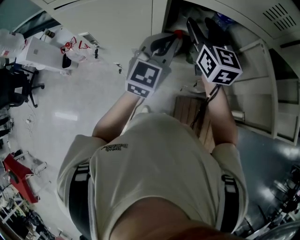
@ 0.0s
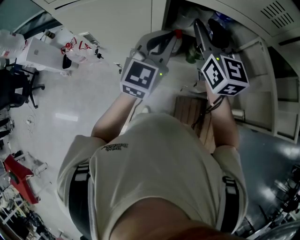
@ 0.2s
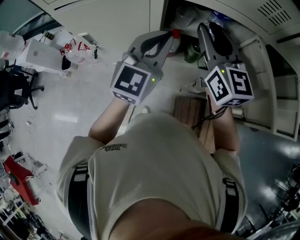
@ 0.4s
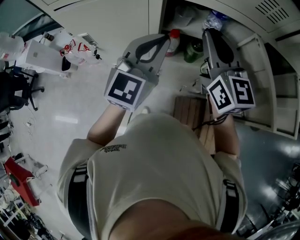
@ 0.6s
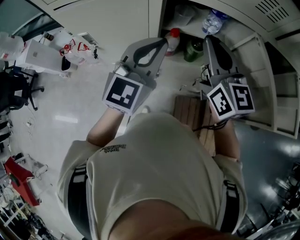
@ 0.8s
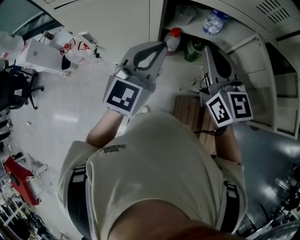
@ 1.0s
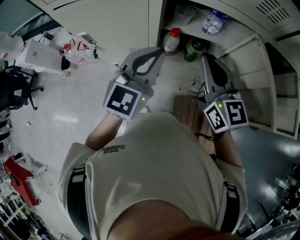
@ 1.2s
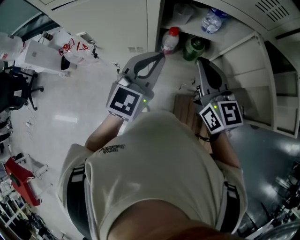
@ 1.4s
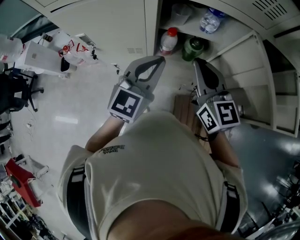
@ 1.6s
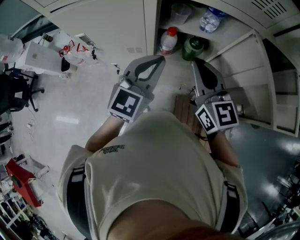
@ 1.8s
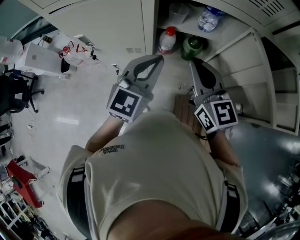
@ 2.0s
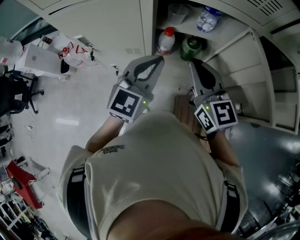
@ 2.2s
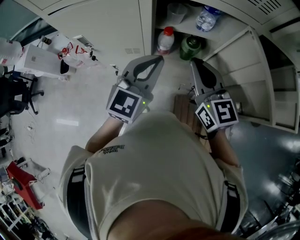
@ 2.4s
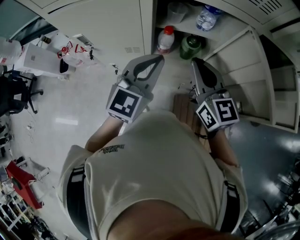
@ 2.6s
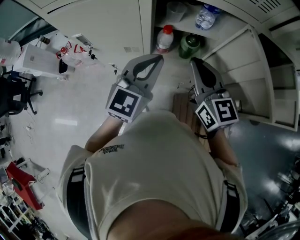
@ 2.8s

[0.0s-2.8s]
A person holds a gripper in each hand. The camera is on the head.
0.0s to 1.4s: The right gripper heads backward, covering about 15 cm, and closes up; the left gripper goes some 10 cm backward.
1.4s to 2.8s: The grippers make only small movements.

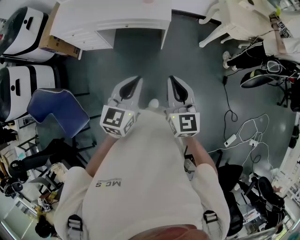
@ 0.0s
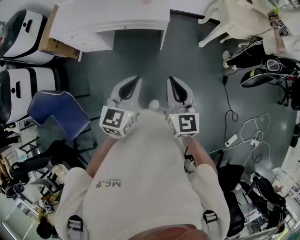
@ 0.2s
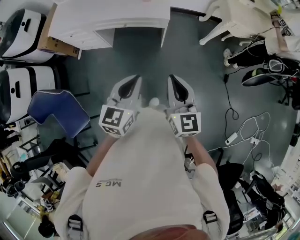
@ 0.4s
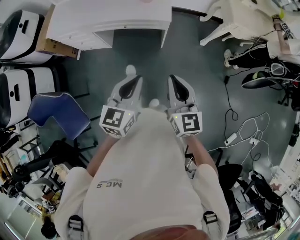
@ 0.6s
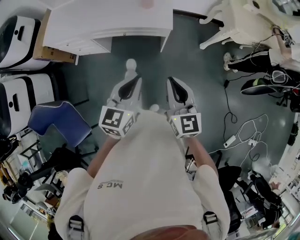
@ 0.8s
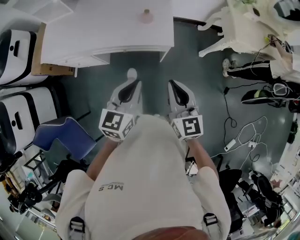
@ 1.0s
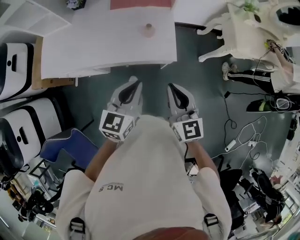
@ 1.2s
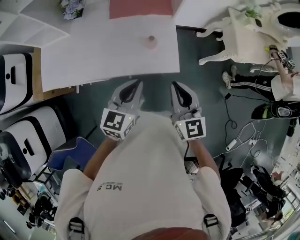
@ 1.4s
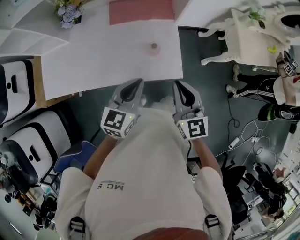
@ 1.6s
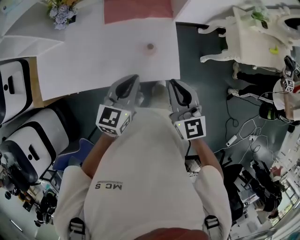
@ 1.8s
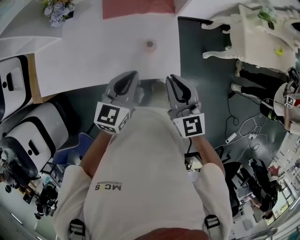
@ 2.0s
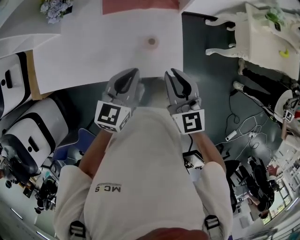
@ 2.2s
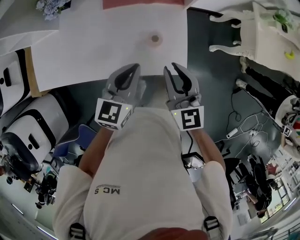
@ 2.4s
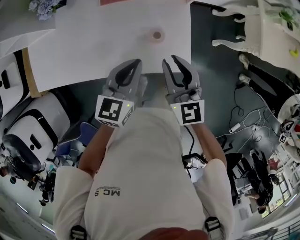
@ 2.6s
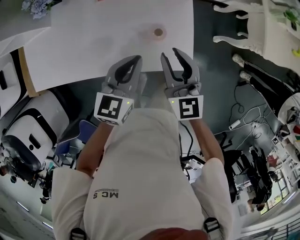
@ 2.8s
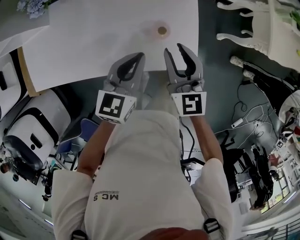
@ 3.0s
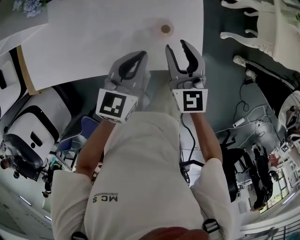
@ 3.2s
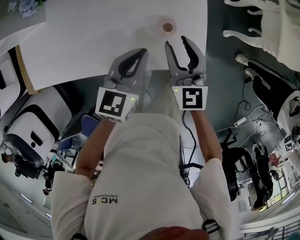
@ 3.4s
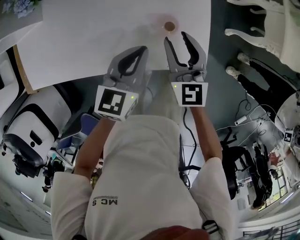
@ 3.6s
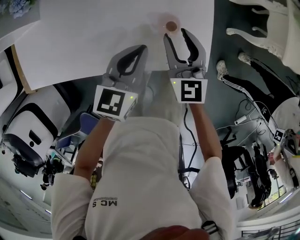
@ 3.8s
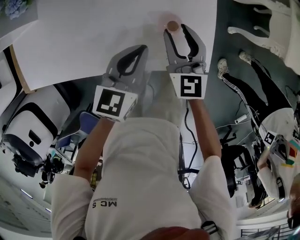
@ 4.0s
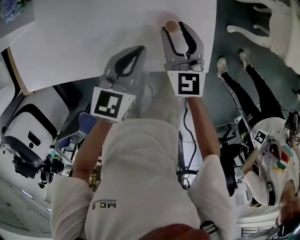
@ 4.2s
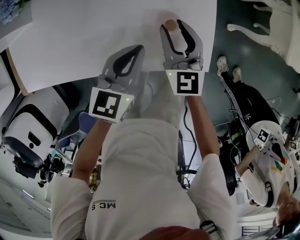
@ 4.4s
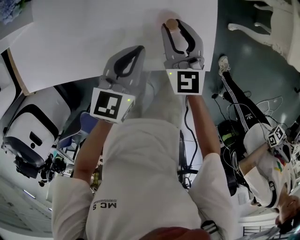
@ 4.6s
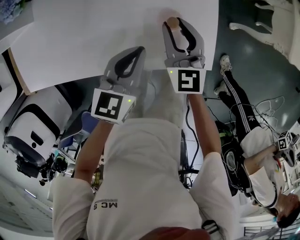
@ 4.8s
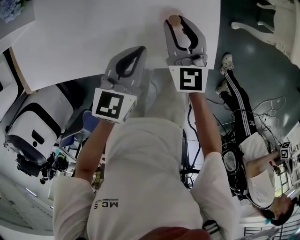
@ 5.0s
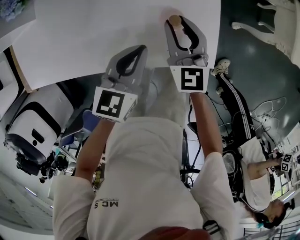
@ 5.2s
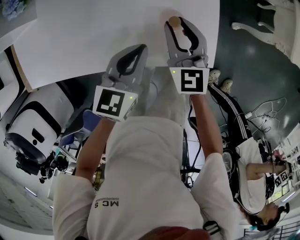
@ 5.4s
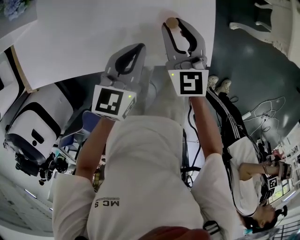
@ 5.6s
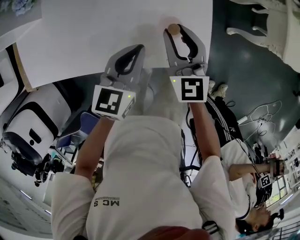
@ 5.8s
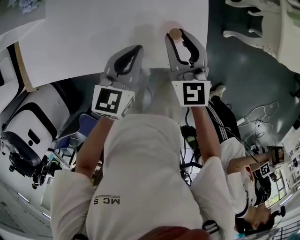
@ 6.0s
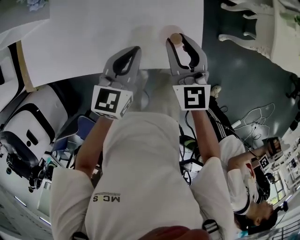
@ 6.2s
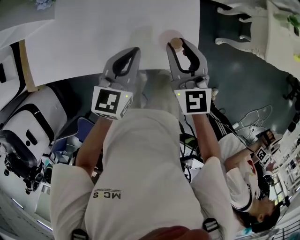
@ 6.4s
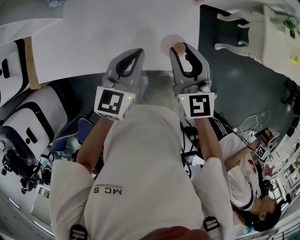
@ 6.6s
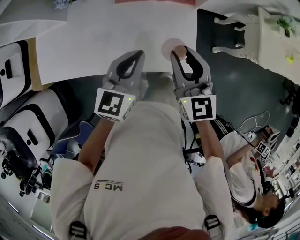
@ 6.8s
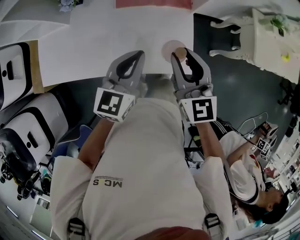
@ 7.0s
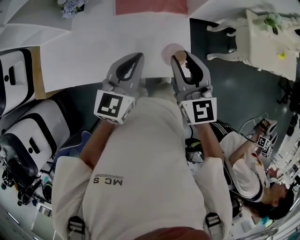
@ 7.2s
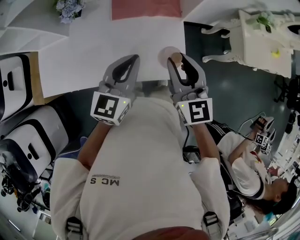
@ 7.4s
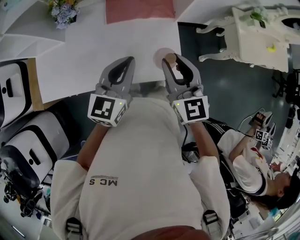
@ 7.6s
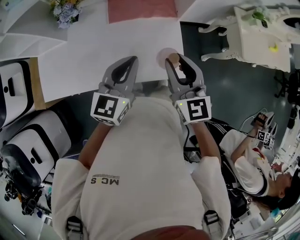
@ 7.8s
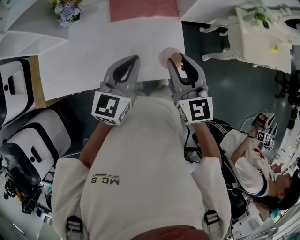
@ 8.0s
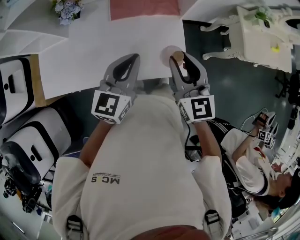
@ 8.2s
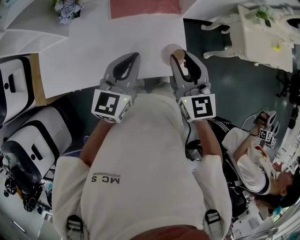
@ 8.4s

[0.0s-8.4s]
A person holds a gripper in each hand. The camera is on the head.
0.0s to 1.4s: Both grippers are carried forward, approximately 50 cm.
1.4s to 2.8s: The two grippers go roughly 25 cm forward and downward. The right gripper opens.
2.8s to 4.2s: Both grippers travel together downward, approximately 15 cm.
4.2s to 5.6s: The grippers make only small movements.
5.6s to 7.0s: Both grippers move upward, about 25 cm.
7.0s to 8.4s: There are only small adjustments of the grippers.

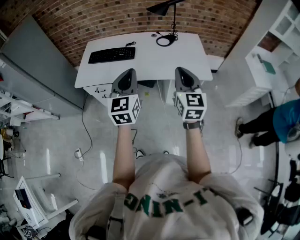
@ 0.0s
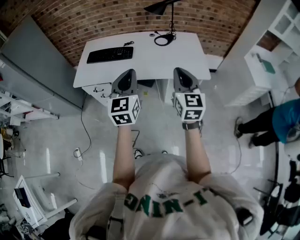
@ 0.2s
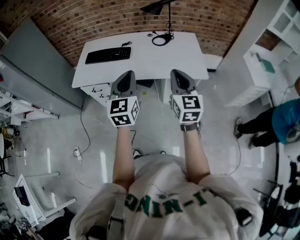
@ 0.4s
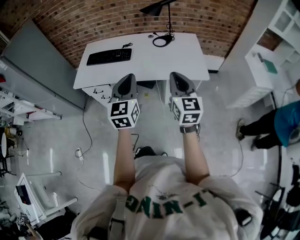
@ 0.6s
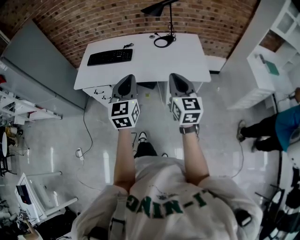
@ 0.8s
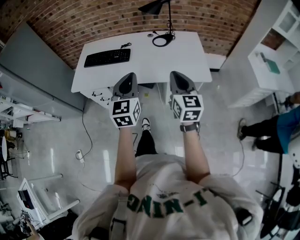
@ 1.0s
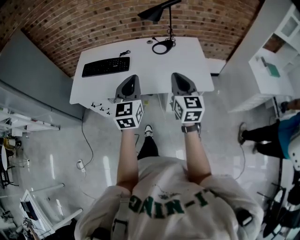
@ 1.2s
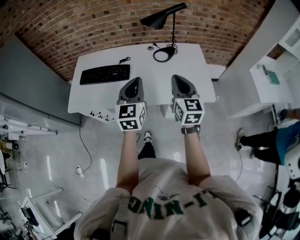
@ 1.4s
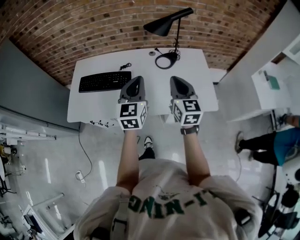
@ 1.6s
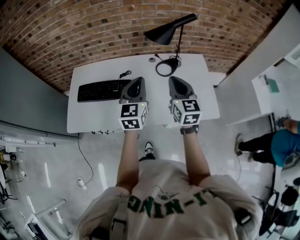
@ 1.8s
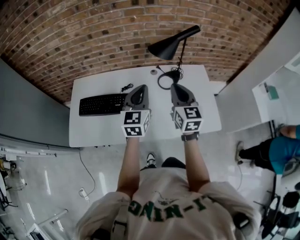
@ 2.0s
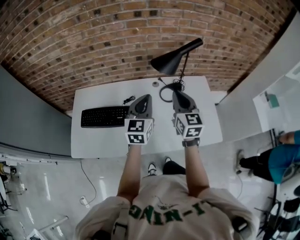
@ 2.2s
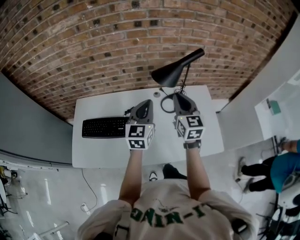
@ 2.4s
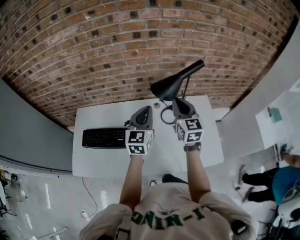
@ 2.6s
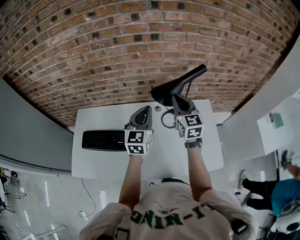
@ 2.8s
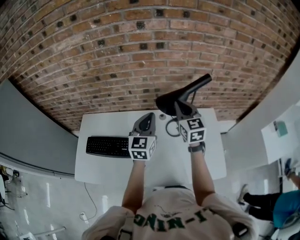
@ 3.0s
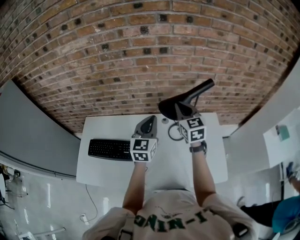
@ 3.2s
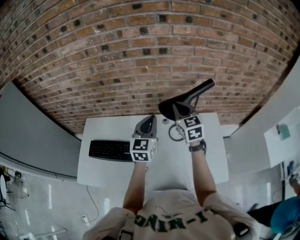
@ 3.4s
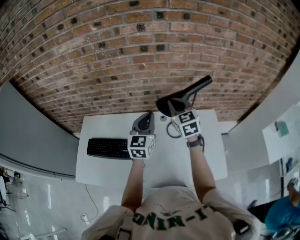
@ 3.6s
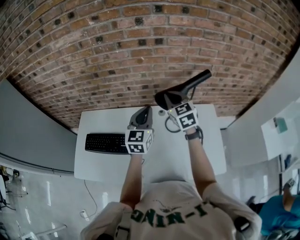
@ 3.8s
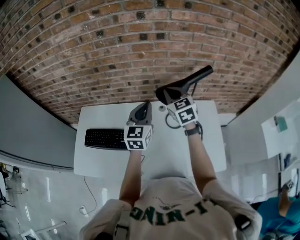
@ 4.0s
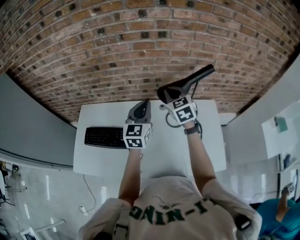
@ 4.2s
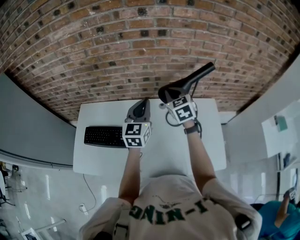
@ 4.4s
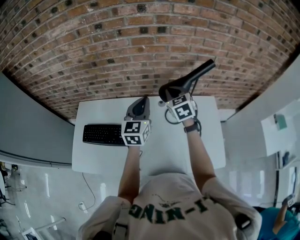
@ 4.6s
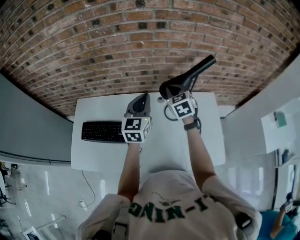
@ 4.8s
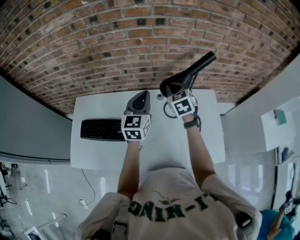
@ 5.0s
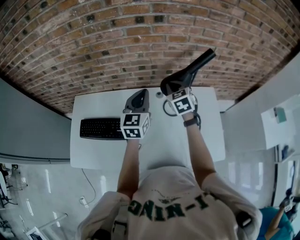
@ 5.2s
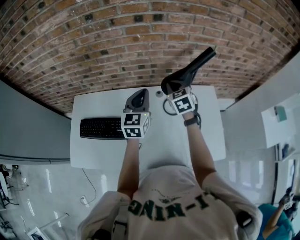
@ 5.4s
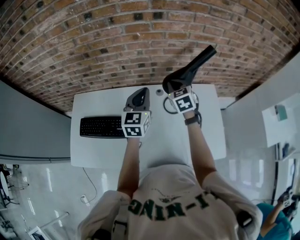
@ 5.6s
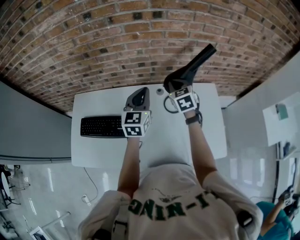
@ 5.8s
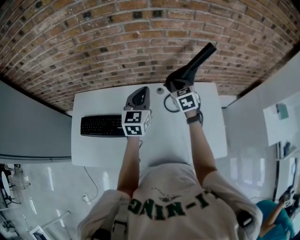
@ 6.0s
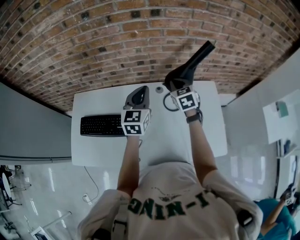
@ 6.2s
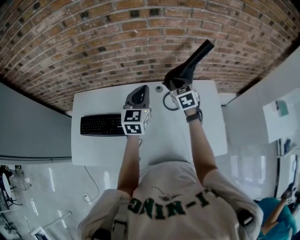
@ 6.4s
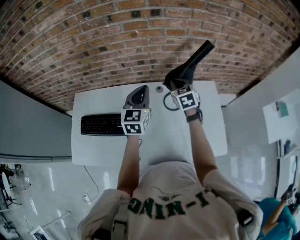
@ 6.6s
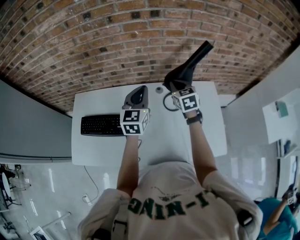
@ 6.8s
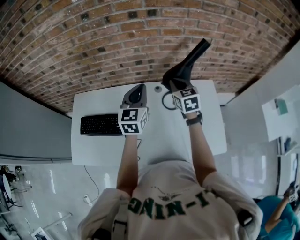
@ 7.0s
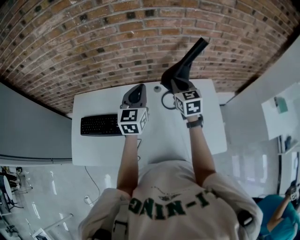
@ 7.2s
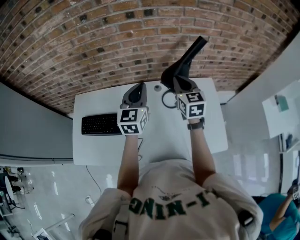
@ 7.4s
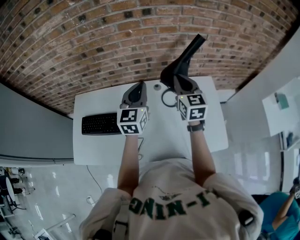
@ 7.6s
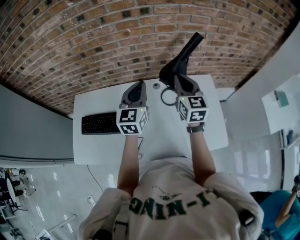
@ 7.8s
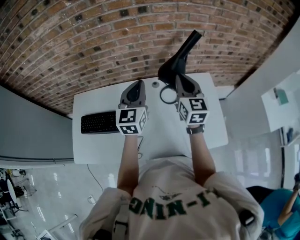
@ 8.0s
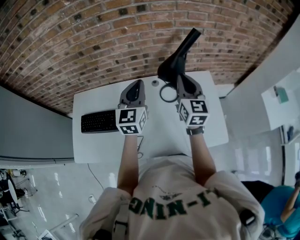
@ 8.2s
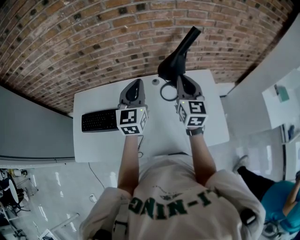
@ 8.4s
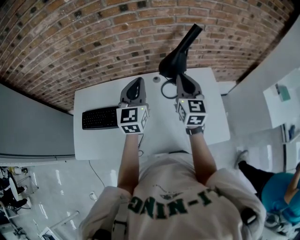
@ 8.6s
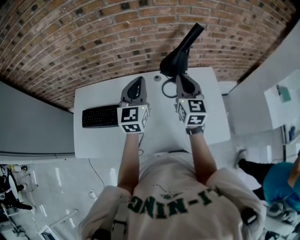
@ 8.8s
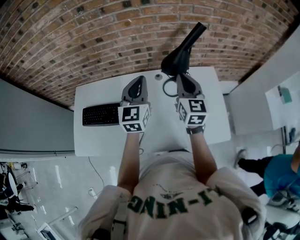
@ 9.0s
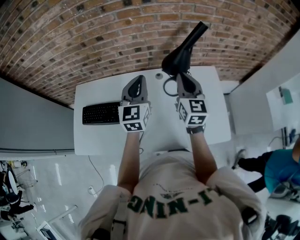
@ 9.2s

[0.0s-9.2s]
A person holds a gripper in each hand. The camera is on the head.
0.0s to 1.6s: Both grippers travel together forward, approximately 30 cm.
1.6s to 3.0s: Both grippers move forward, approximately 30 cm.
3.0s to 4.6s: The right gripper is displaced downward by roughly 5 cm, and changes its angle by roughly 20 degrees.
4.6s to 6.2s: The right gripper travels downward by approximately 5 cm.
6.2s to 7.6s: The right gripper shifts roughly 10 cm upward and backward, and swivels roughly 30 degrees. Meanwhile the left gripper moves approximately 5 cm.
7.6s to 9.2s: The grippers stay close to where they were, moving slightly.

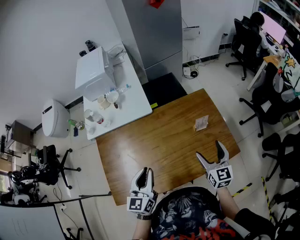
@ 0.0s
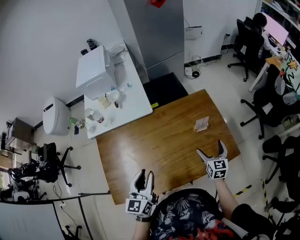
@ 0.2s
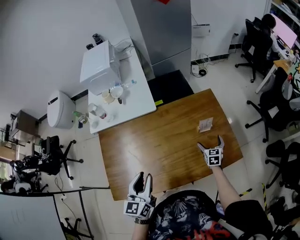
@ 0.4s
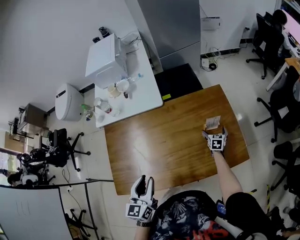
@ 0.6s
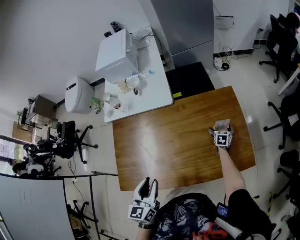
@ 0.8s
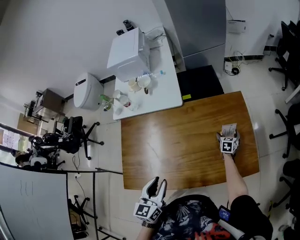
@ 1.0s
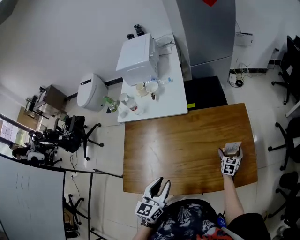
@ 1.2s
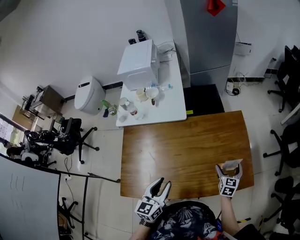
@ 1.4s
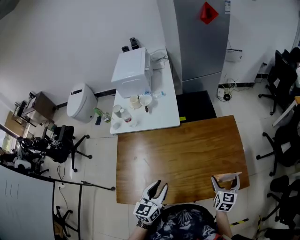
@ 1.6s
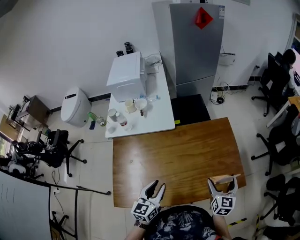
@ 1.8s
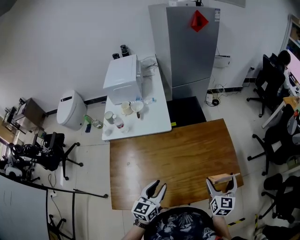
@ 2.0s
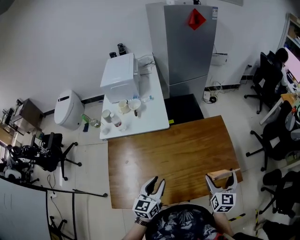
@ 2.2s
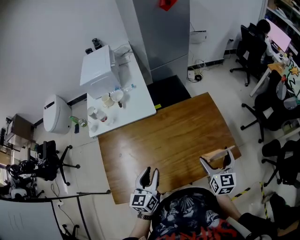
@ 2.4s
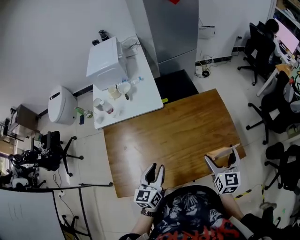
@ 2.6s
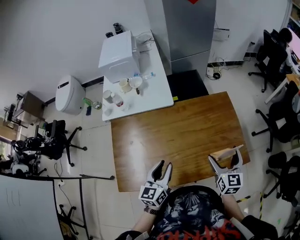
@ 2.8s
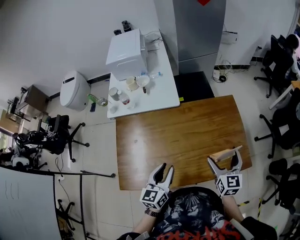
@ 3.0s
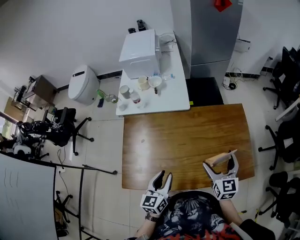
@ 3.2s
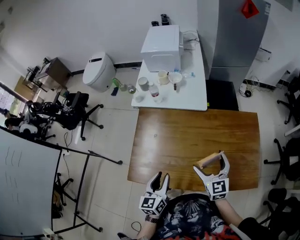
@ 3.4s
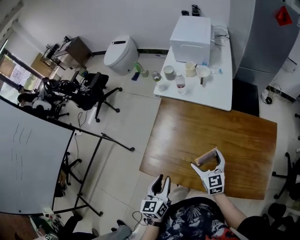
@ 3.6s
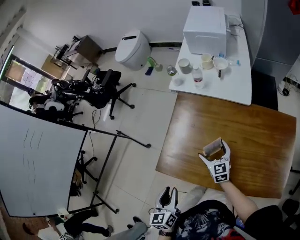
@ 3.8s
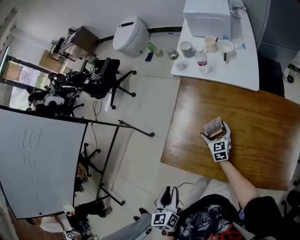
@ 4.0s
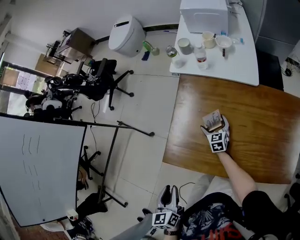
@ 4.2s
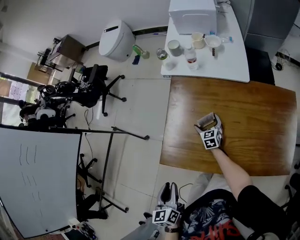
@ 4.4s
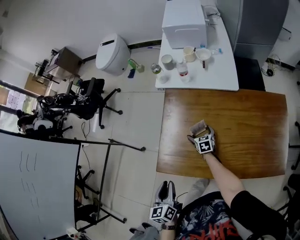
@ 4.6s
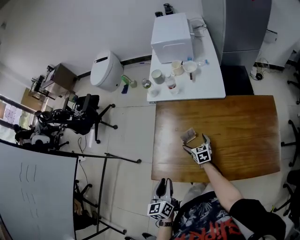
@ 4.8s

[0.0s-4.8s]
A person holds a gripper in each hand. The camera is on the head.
0.0s to 1.6s: The right gripper travels downward and back again, some 30 cm each way.
1.6s to 3.2s: The right gripper shifts approximately 15 cm to the left and upward, and swivels roughly 20 degrees. The left gripper ends up roughly 5 cm from where it was.
3.2s to 4.8s: The left gripper shifts by approximately 25 cm, and changes its angle by about 30 degrees, while the right gripper shifts by approximately 40 cm, and turns by about 30 degrees.
